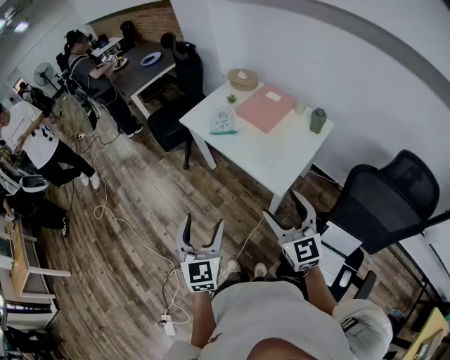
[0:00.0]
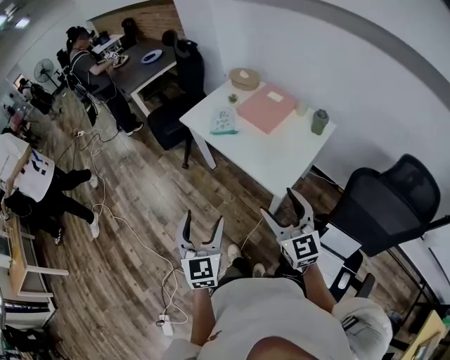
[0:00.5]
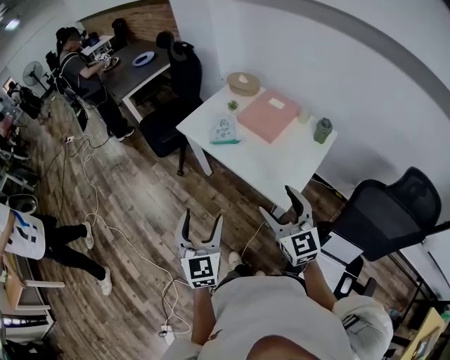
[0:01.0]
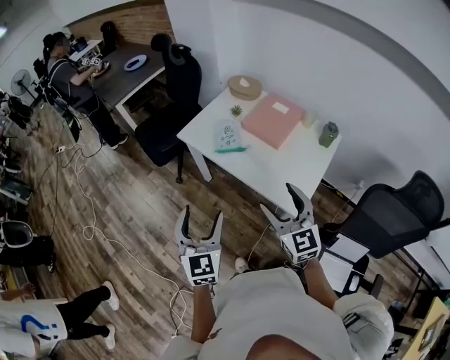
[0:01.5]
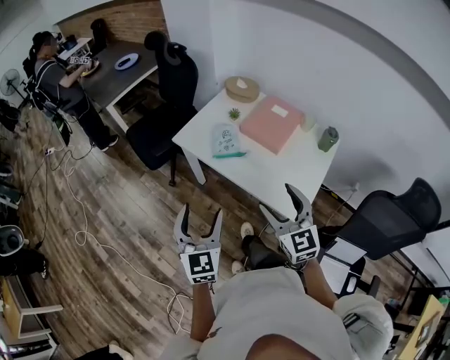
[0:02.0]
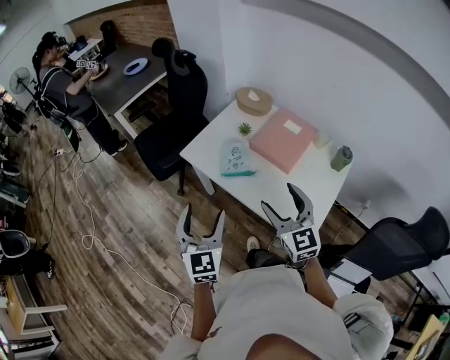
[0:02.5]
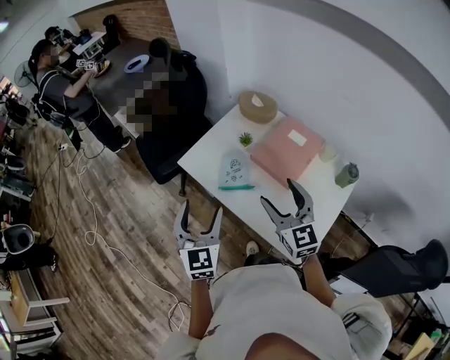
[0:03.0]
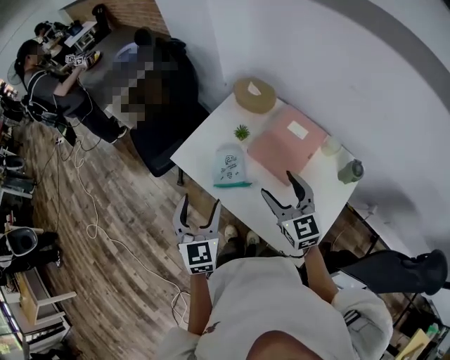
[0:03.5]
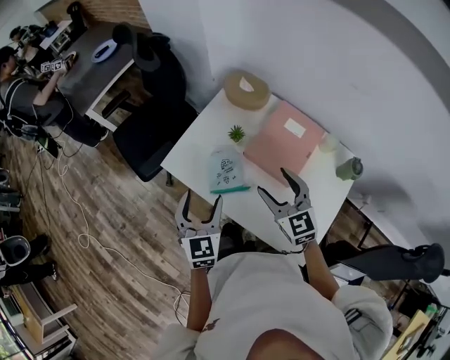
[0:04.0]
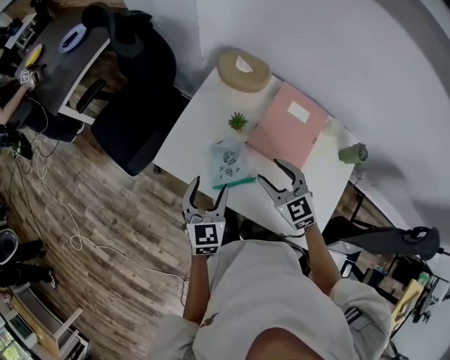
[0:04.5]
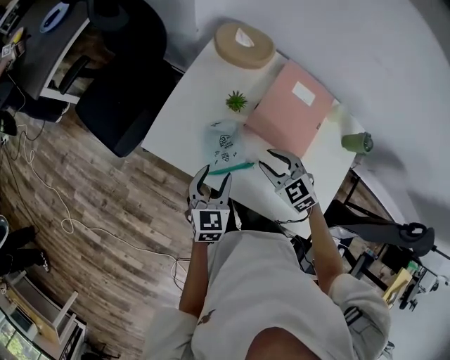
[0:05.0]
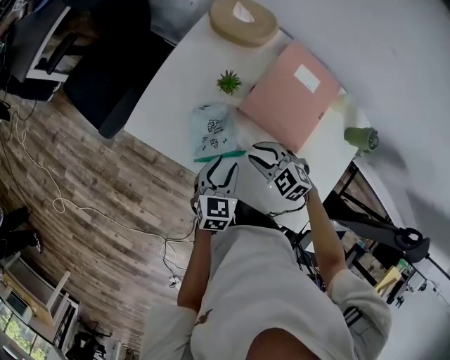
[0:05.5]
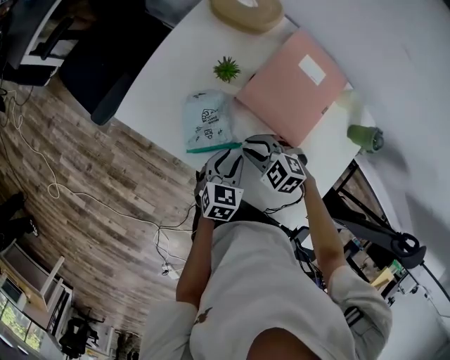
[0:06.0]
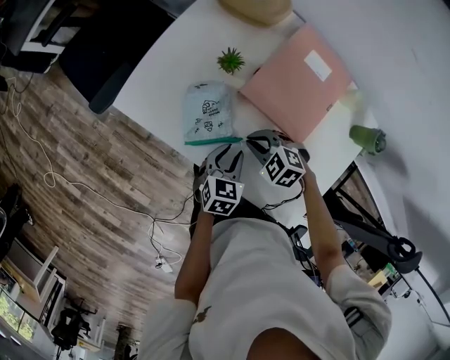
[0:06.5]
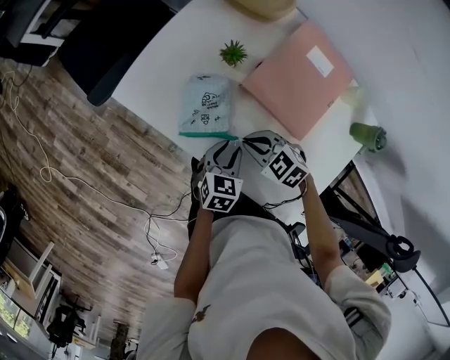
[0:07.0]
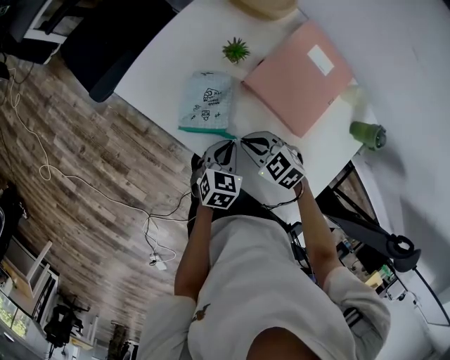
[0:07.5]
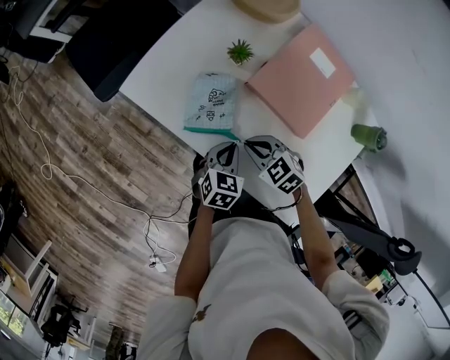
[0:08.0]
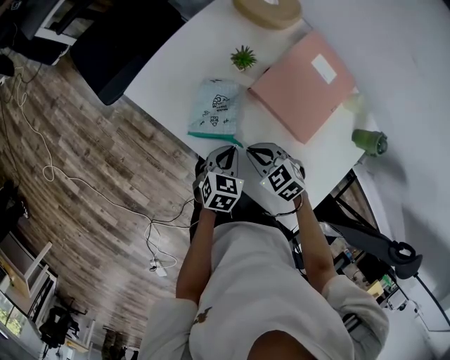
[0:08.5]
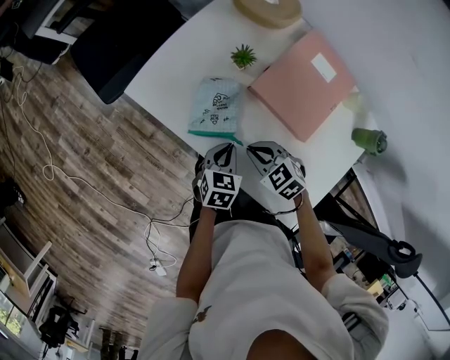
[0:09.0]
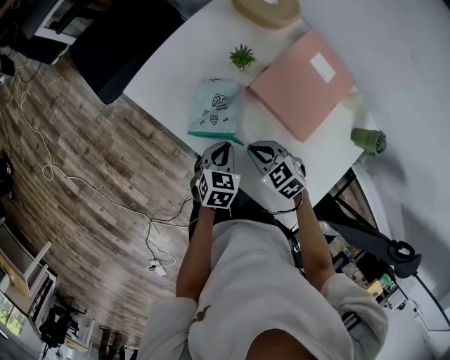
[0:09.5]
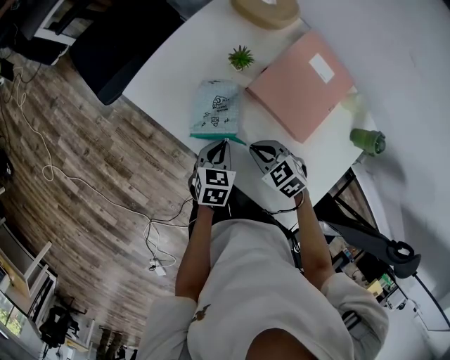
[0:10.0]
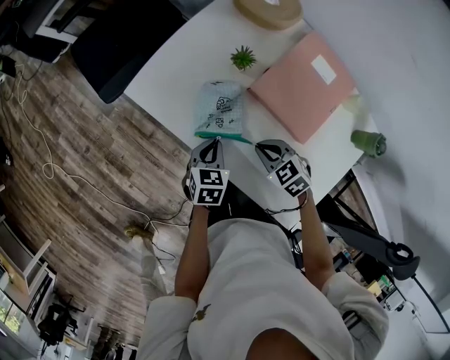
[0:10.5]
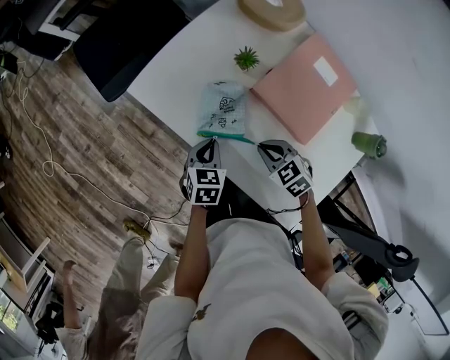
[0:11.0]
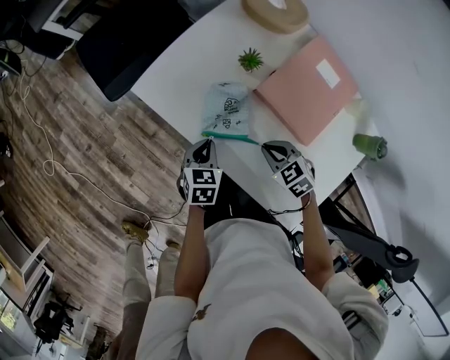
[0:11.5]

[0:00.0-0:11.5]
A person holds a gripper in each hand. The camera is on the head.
0:00.0 to 0:02.0: The right gripper shifts roughly 25 cm forward and to the left. The left gripper goes some 25 cm forward.
0:02.0 to 0:04.0: The two grippers go roughly 30 cm forward.
0:04.0 to 0:06.0: The right gripper heads downward, covering about 25 cm, angles its fingers downward, by roughly 40 degrees, and closes; the left gripper is displaced downward and to the right by some 30 cm, turns by about 40 degrees, and closes up.
0:06.0 to 0:09.5: There are only small adjustments of the grippers.
0:09.5 to 0:11.5: The left gripper heads to the left, covering some 5 cm.

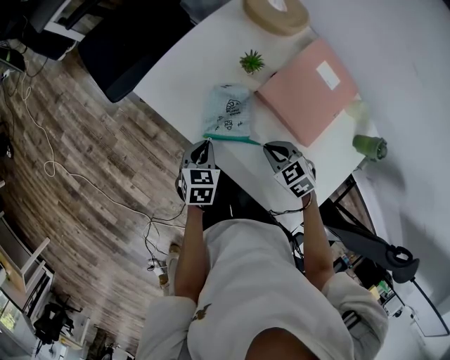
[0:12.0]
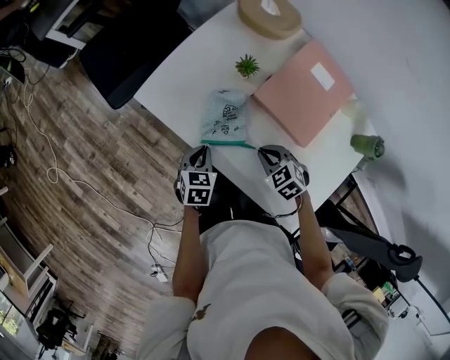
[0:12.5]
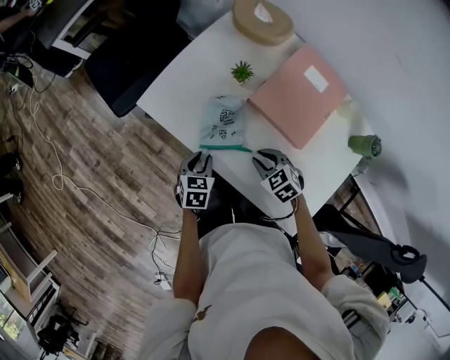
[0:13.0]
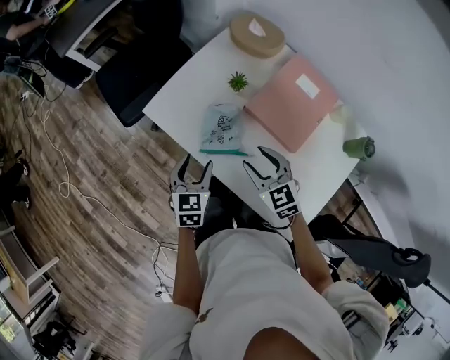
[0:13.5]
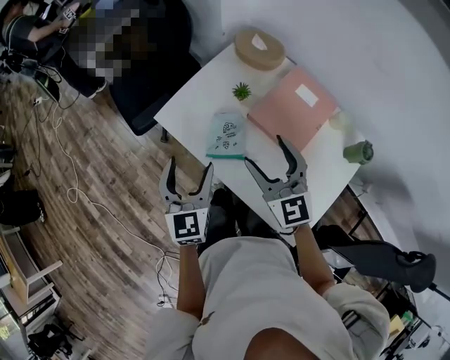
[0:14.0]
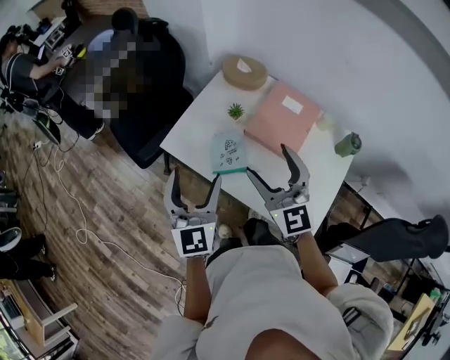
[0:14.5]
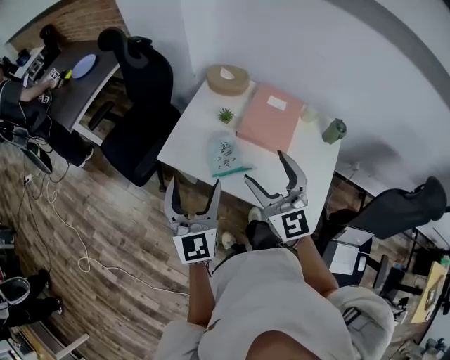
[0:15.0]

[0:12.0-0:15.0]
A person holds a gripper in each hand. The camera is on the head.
0:12.0 to 0:13.5: The grippers both shift upward by roughly 10 cm. The left gripper opens. The right gripper rotates some 30 degrees, and opens.
0:13.5 to 0:15.0: Both grippers travel together upward, about 25 cm. The left gripper tips its fingers upward by about 40 degrees, and opens its fingers. The right gripper points its fingers approximately 30 degrees further upward, and opens.

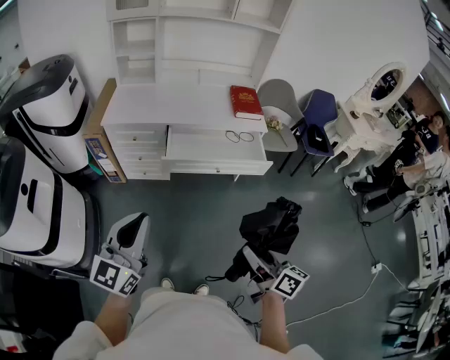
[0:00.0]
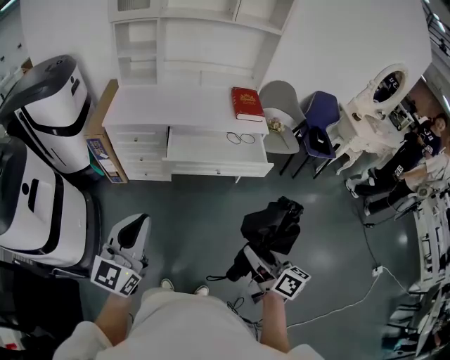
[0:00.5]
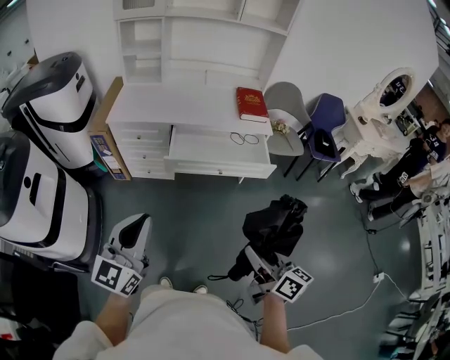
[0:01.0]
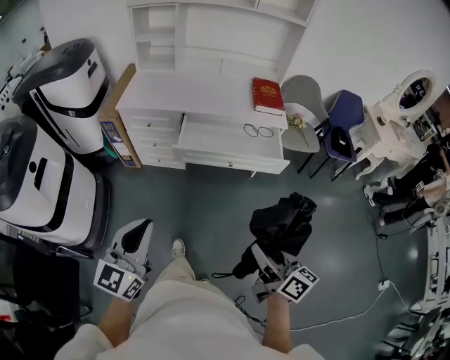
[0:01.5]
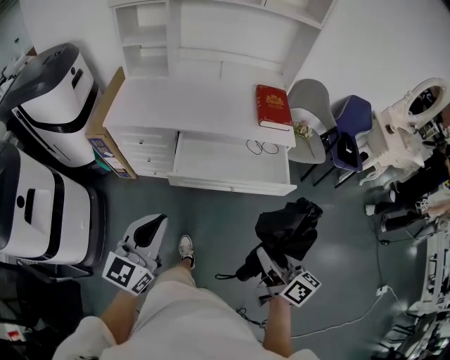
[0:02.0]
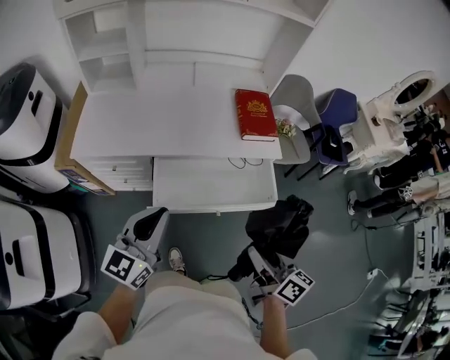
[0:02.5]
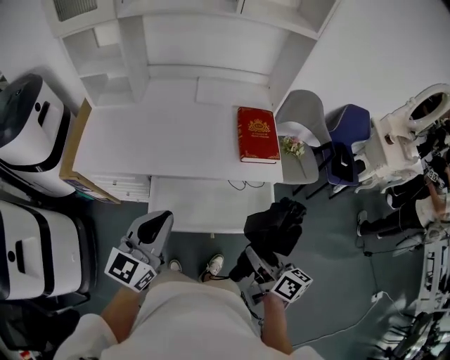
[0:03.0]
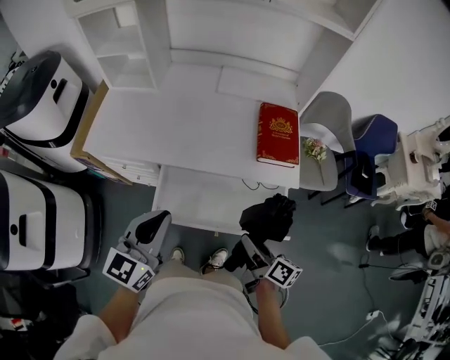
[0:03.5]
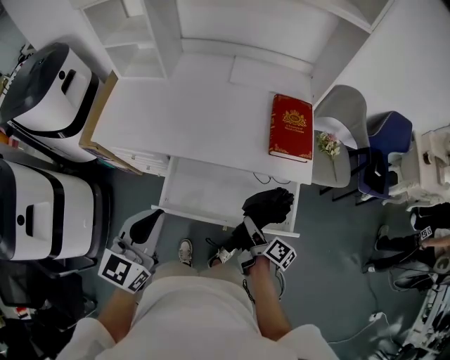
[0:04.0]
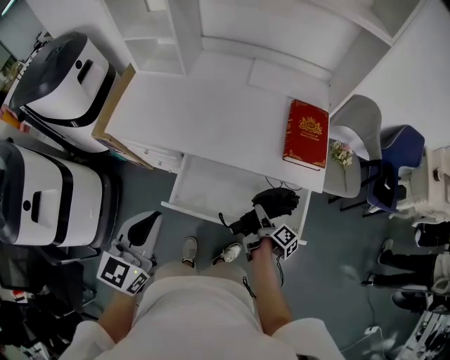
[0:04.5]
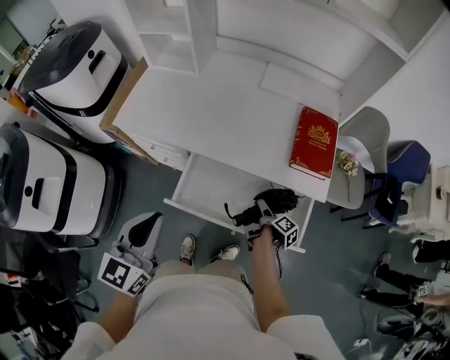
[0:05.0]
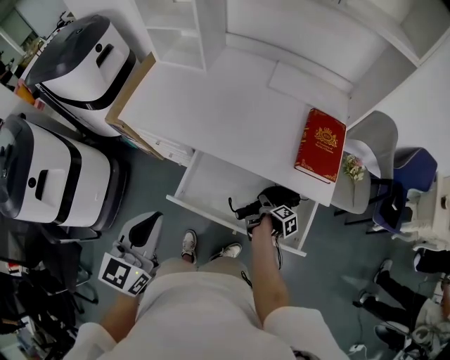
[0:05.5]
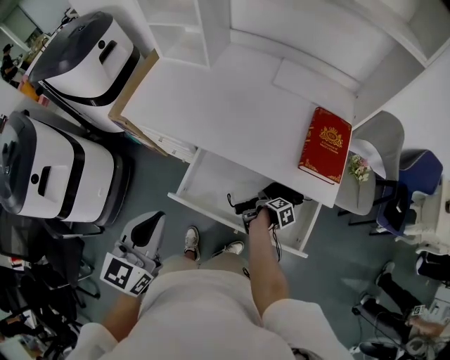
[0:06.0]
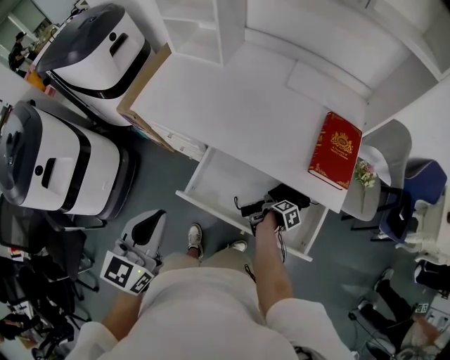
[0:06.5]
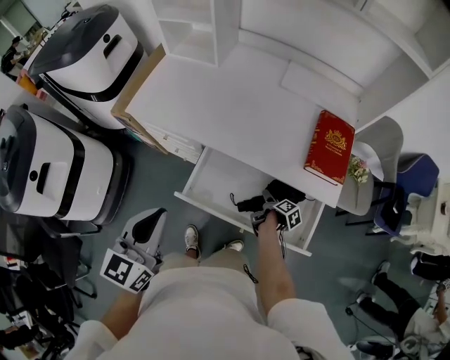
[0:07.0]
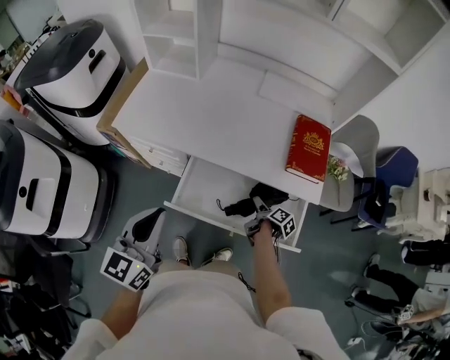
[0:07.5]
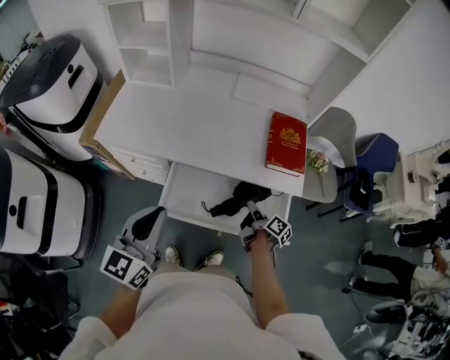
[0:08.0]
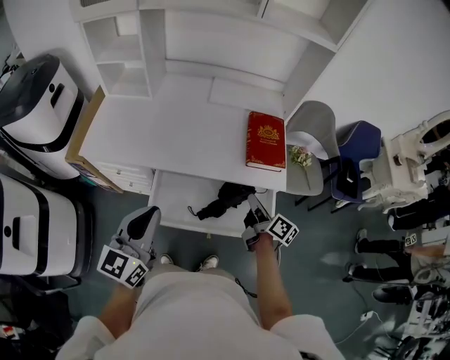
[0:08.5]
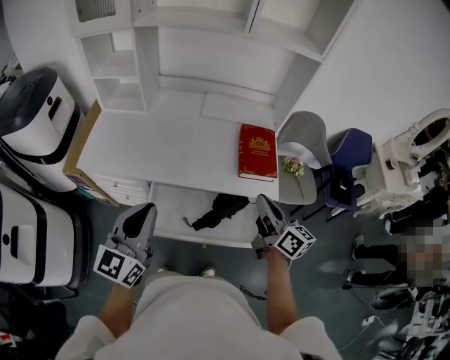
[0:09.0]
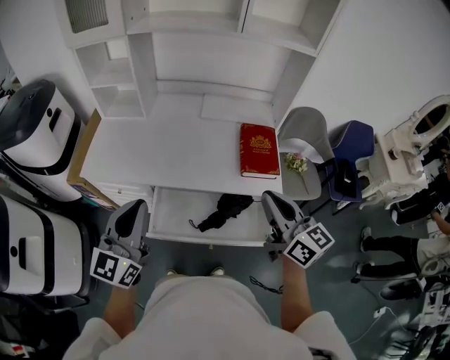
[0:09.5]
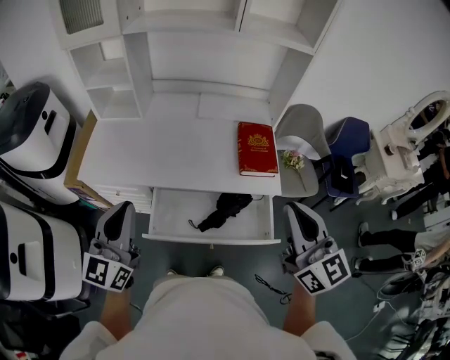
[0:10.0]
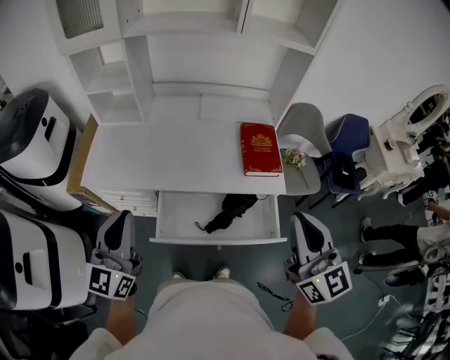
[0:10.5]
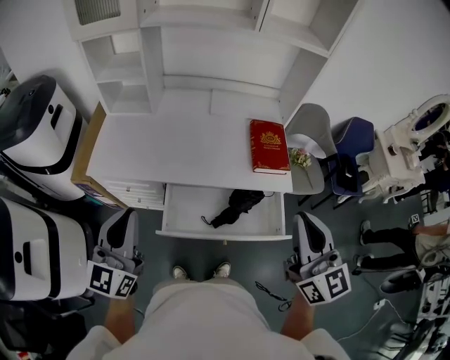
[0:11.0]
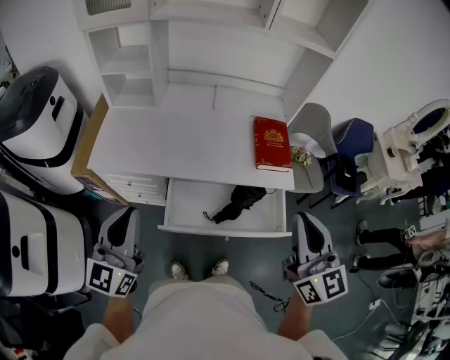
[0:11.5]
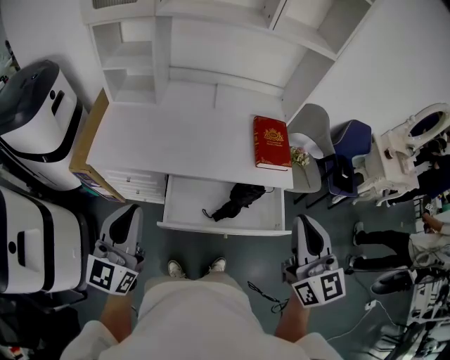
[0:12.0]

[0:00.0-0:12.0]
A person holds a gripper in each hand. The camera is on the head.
0:00.0 to 0:02.0: Both grippers move forward, roughly 15 cm.
0:02.0 to 0:04.0: The left gripper travels forward by about 25 cm; the right gripper travels forward and downward by approximately 35 cm, and swivels approximately 40 degrees.
0:04.0 to 0:06.0: The right gripper shifts some 20 cm downward and forward, and angles its fingers downward, by some 40 degrees.
0:06.0 to 0:08.0: The right gripper is displaced upward by some 15 cm, tips its fingers upward by roughly 40 degrees, and closes up.
0:08.0 to 0:10.0: The left gripper goes some 10 cm upward, while the right gripper shifts roughly 40 cm upward, and rolls counterclockwise, seen from behind, by about 70 degrees.
0:10.0 to 0:12.0: Both grippers move to the left, roughly 5 cm.
